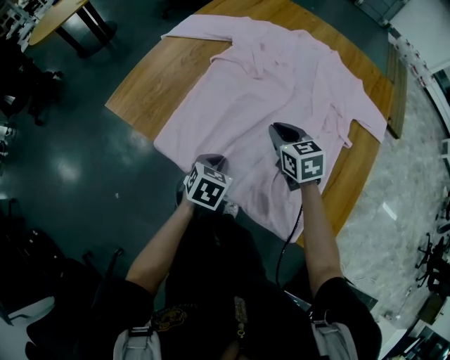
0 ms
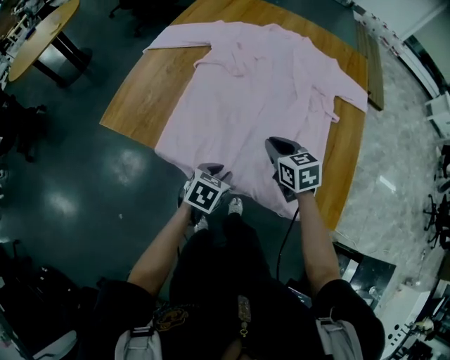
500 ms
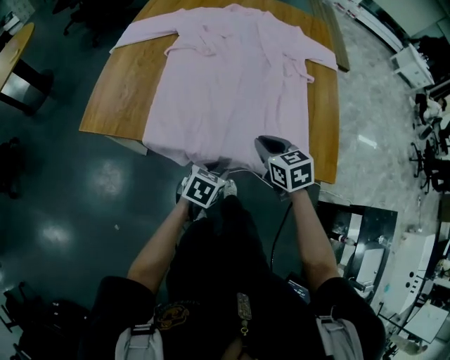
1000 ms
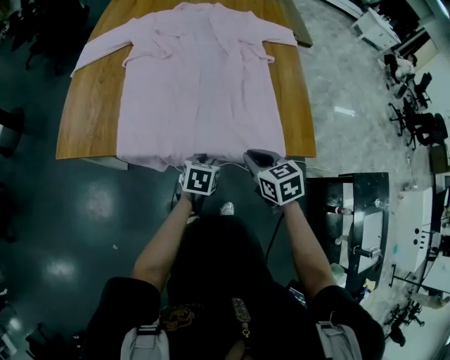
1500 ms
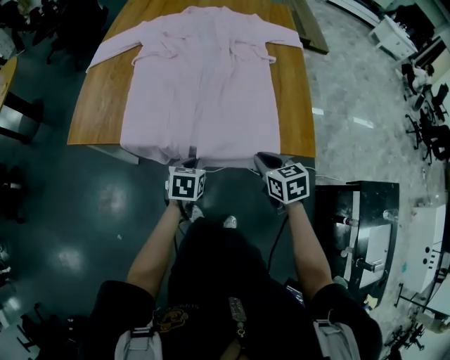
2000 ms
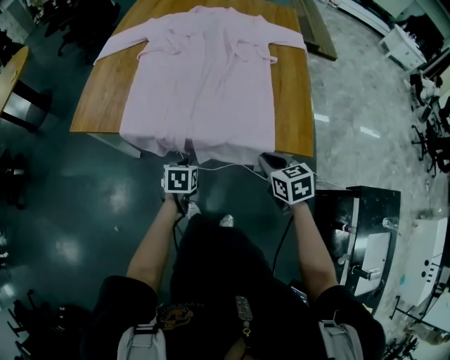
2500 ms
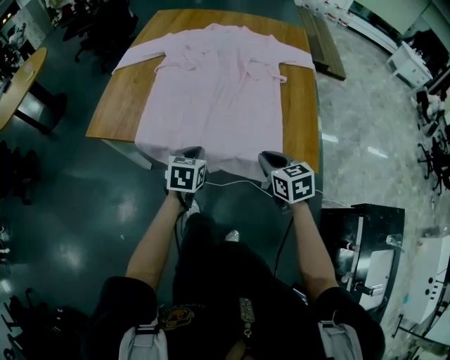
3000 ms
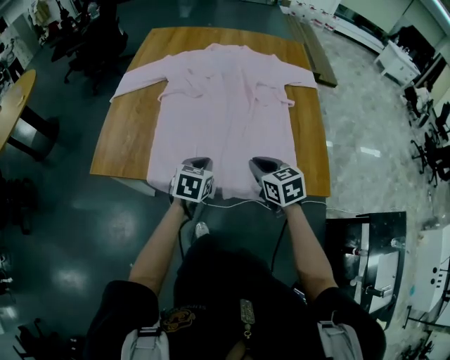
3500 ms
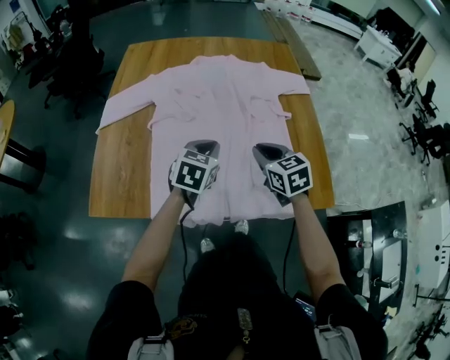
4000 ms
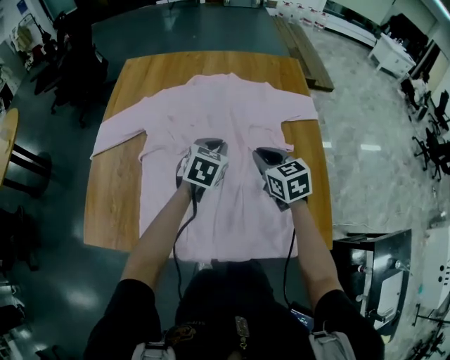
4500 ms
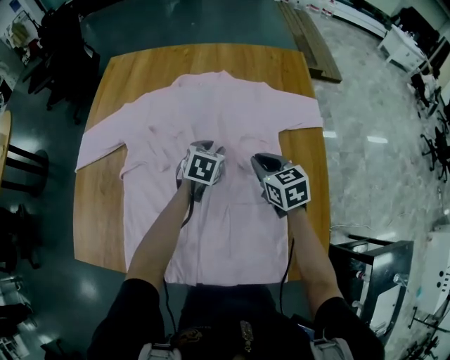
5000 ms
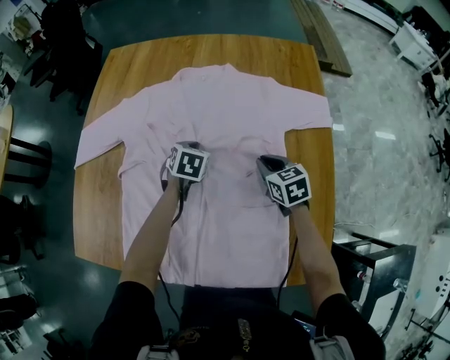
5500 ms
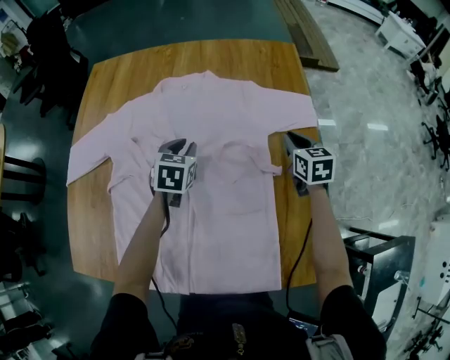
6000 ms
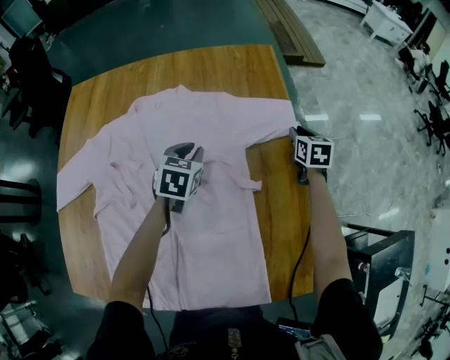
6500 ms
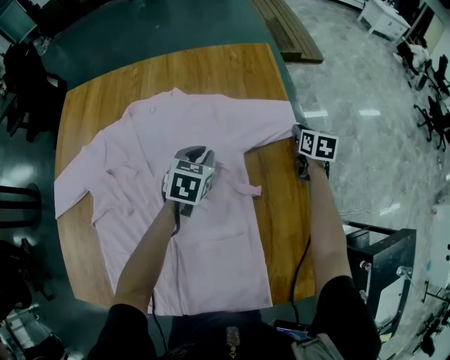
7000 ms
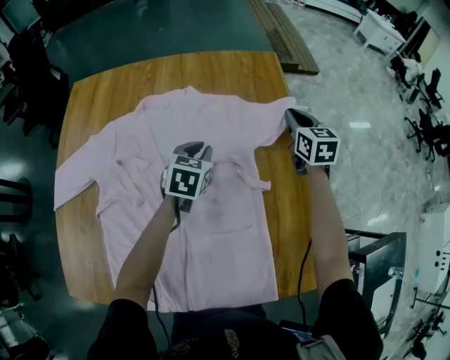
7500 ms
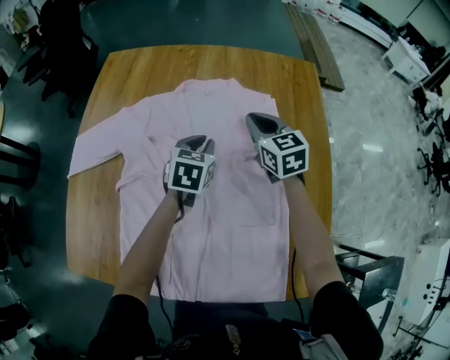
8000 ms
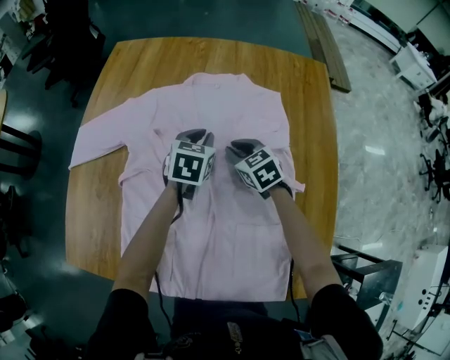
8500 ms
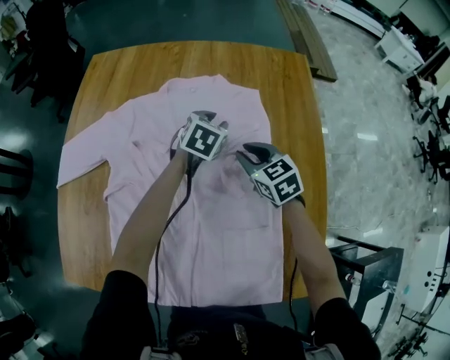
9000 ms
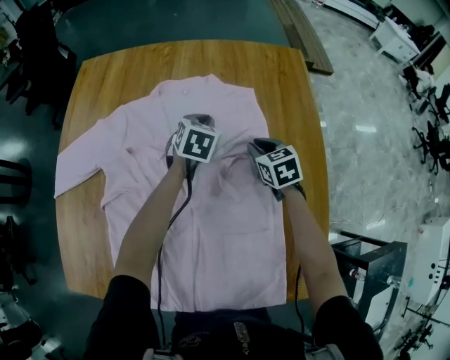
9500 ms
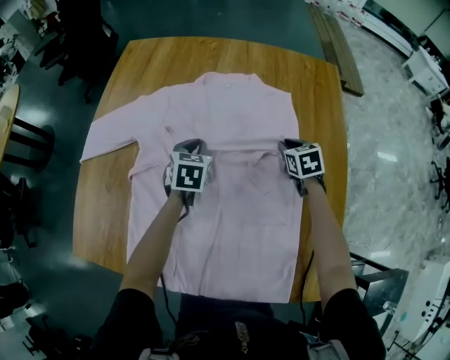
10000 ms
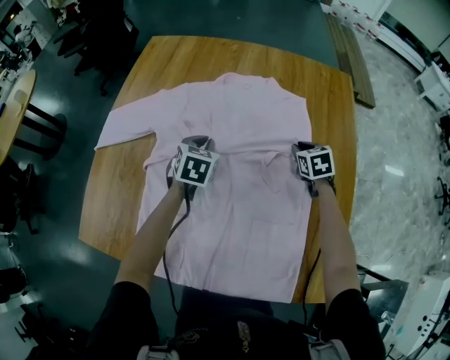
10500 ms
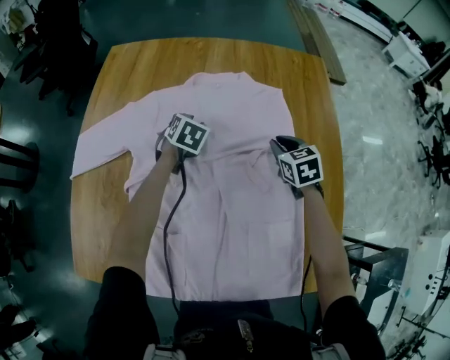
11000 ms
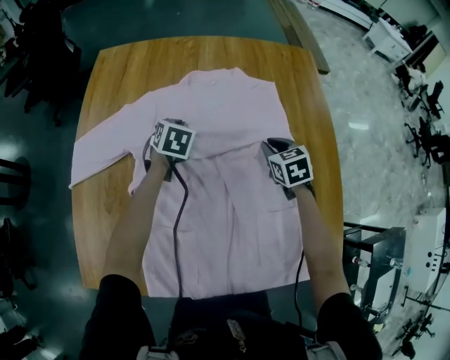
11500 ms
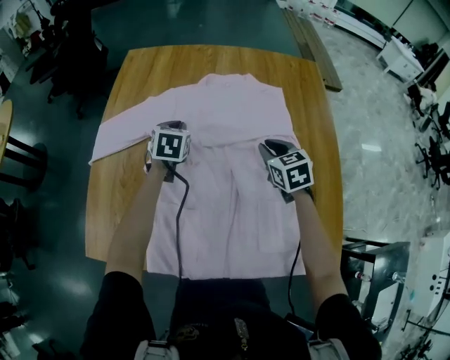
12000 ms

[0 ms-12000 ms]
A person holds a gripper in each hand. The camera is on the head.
0 ms to 2000 ms: The right gripper changes place by about 30 cm, and rotates some 30 degrees; the left gripper moves about 15 cm, and opens and closes again.
2000 ms to 4000 ms: Both grippers travel together forward and upward, approximately 25 cm. The left gripper rotates some 30 degrees.
4000 ms to 6000 ms: The right gripper moves forward and to the right, some 40 cm. The left gripper shifts approximately 30 cm forward.
6000 ms to 8000 ms: The right gripper is displaced to the left by about 20 cm, and turns by roughly 20 degrees. Meanwhile the left gripper goes to the right and returns, approximately 15 cm each way.
8000 ms to 10000 ms: The left gripper goes about 5 cm to the left, while the right gripper heads downward and to the right, covering roughly 15 cm, and changes its angle by approximately 30 degrees.
10000 ms to 12000 ms: The right gripper moves to the left, upward and backward, approximately 20 cm. The left gripper goes approximately 10 cm to the left, moves roughly 10 cm forward and comes back, and opens, then closes once more.

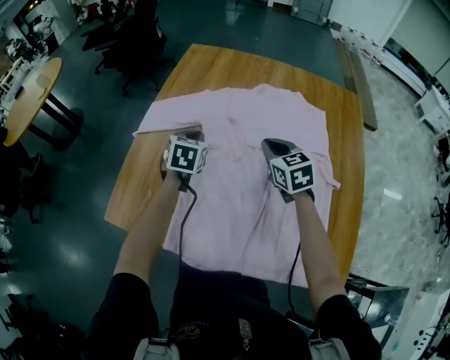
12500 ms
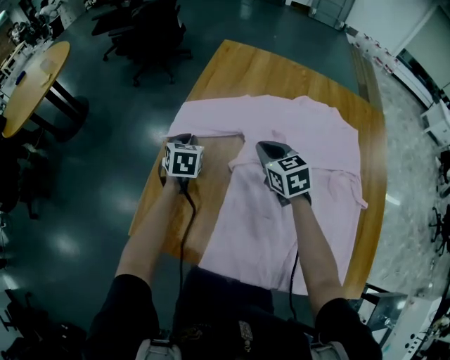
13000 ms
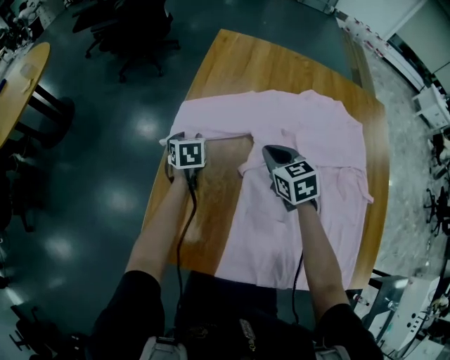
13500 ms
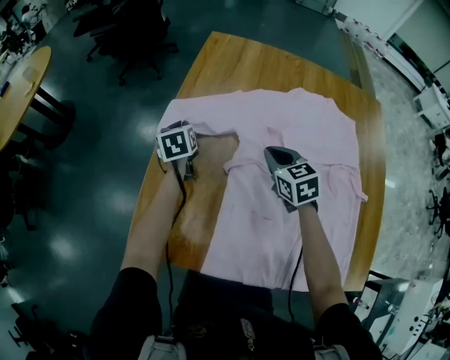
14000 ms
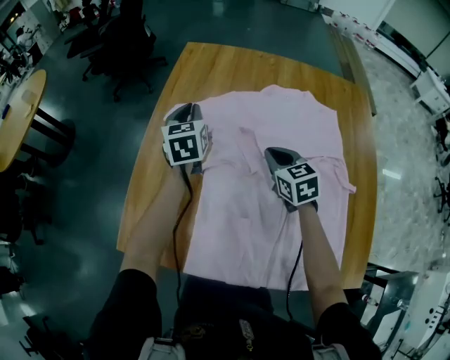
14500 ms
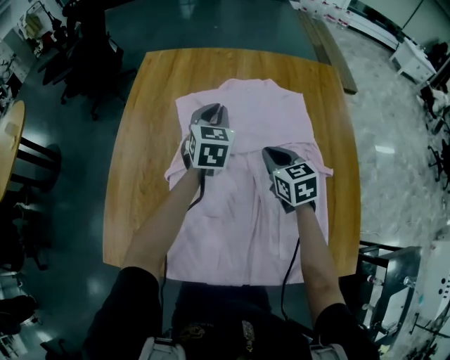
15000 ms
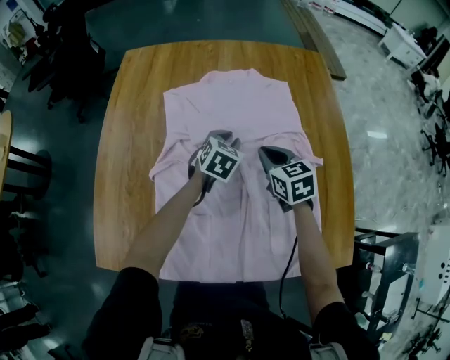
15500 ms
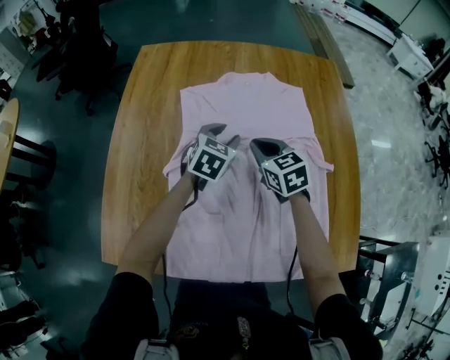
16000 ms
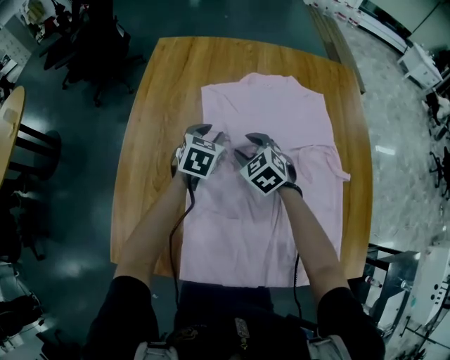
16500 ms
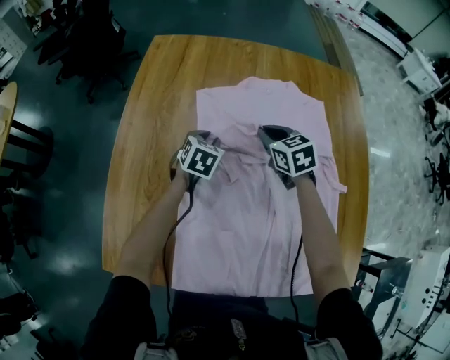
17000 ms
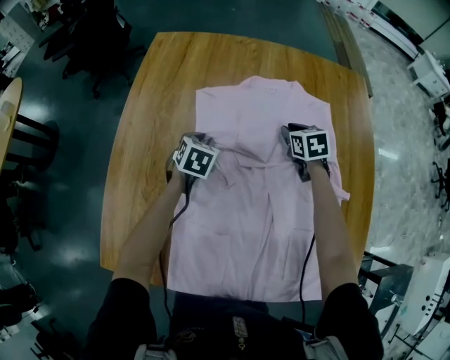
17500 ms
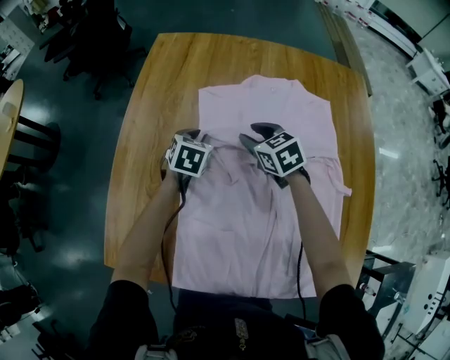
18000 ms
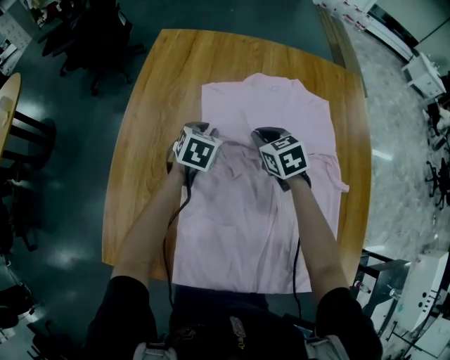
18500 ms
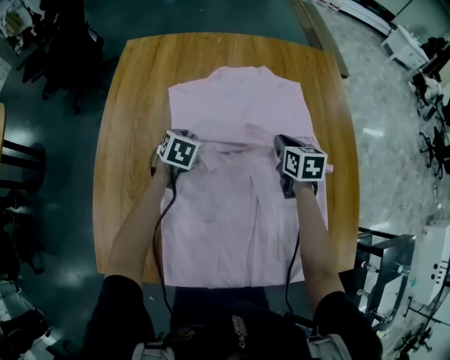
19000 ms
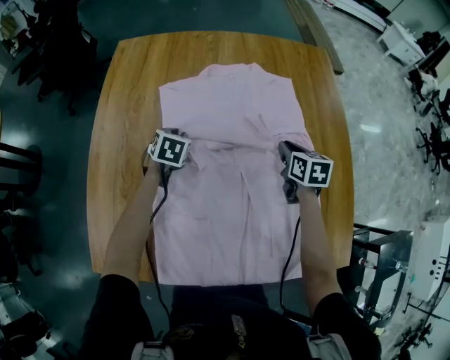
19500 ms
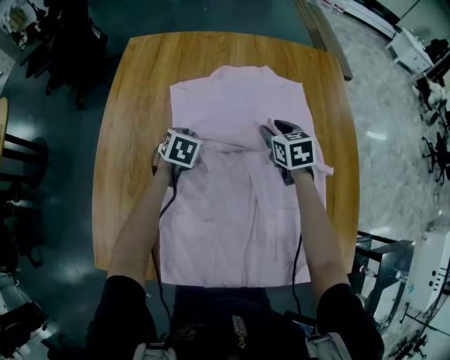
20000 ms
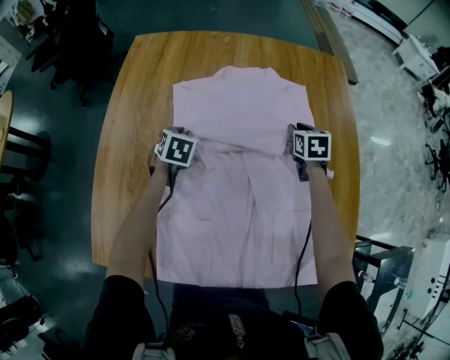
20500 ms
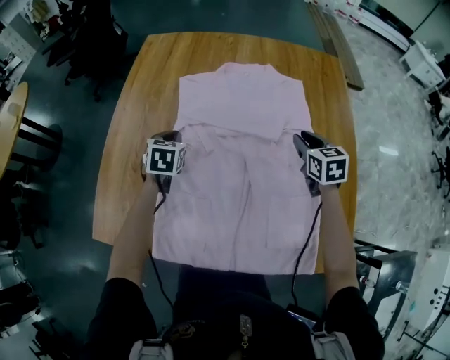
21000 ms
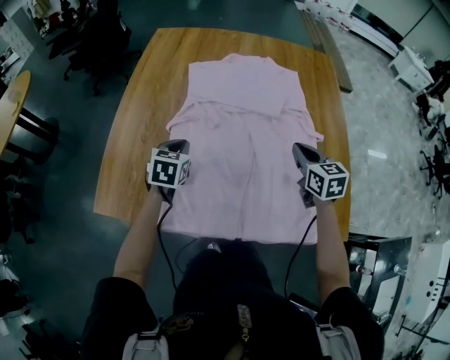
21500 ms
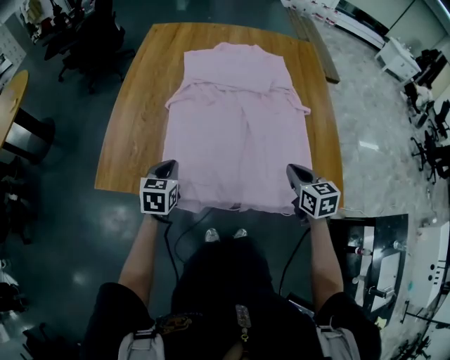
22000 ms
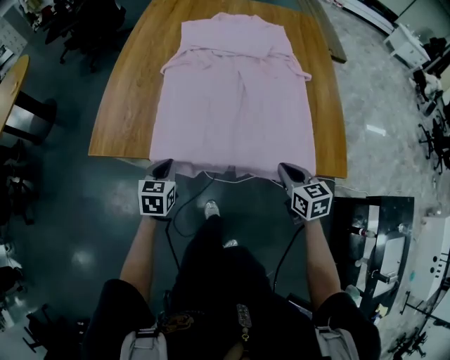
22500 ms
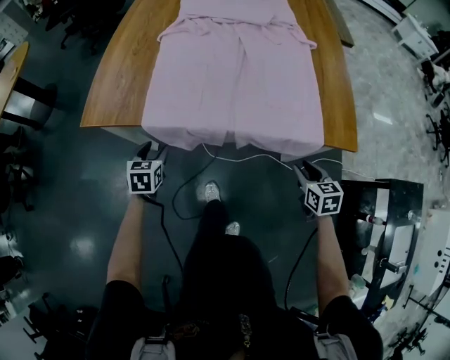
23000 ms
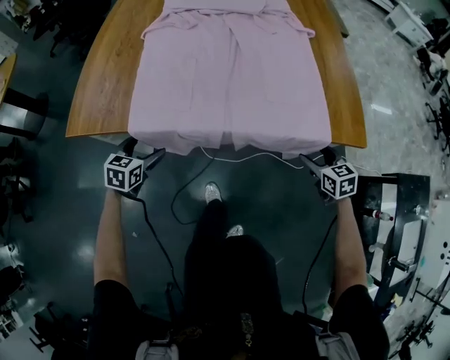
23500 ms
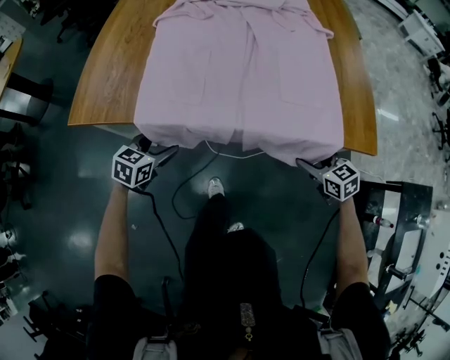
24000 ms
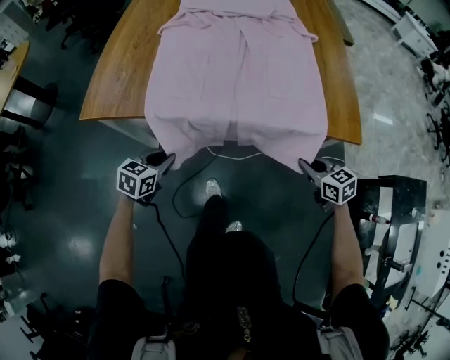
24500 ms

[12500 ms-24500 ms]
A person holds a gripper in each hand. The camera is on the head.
12500 ms to 14500 ms: The right gripper moves approximately 20 cm to the left and comes back; the left gripper is displaced forward and upward by some 15 cm, goes to the left and returns, about 20 cm each way, turns by some 20 degrees, and opens, then closes once more.
14500 ms to 16500 ms: The right gripper is displaced downward by approximately 5 cm, reaches some 15 cm to the right, then returns, turns by some 30 degrees, and opens. Meanwhile the left gripper moves to the right and downward, approximately 15 cm, turns by roughly 40 degrees, and opens.
16500 ms to 18500 ms: The right gripper travels forward by approximately 5 cm, moves roughly 20 cm to the right and comes back, changes its angle by approximately 20 degrees, and closes its fingers.
18500 ms to 20500 ms: The right gripper goes left and right, some 25 cm each way, reversing 2 times, and swivels roughly 30 degrees.
20500 ms to 22500 ms: Both grippers are carried backward, roughly 50 cm. The right gripper turns by about 20 degrees, and closes up.
22500 ms to 24500 ms: The left gripper shifts about 15 cm backward and downward, rotates some 20 degrees, and opens, then closes once more. The right gripper heads downward, backward and to the right, covering approximately 15 cm, and opens, then closes once more.

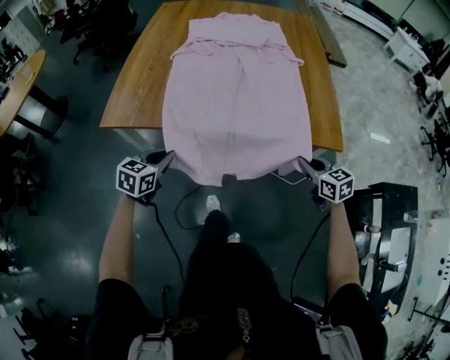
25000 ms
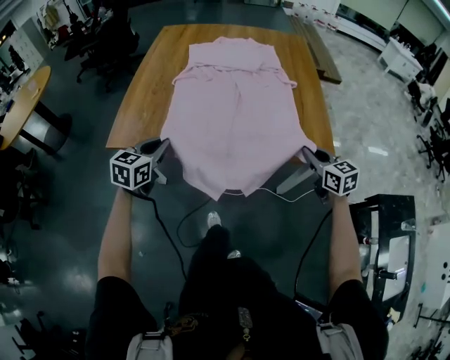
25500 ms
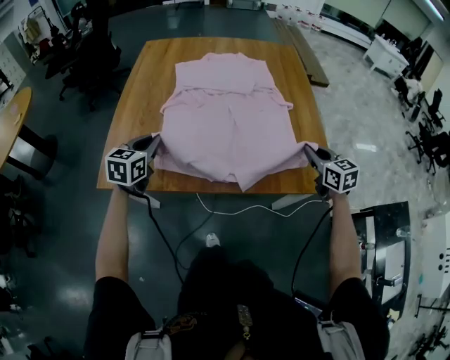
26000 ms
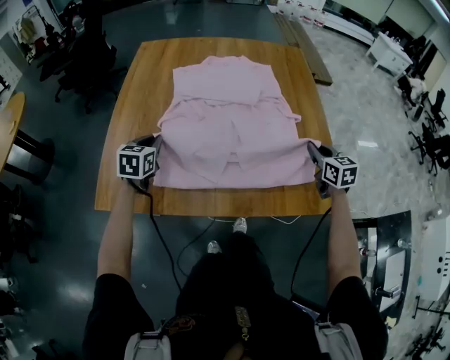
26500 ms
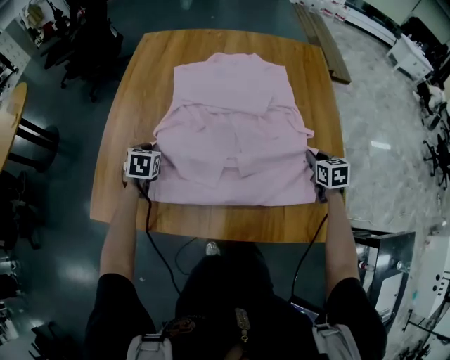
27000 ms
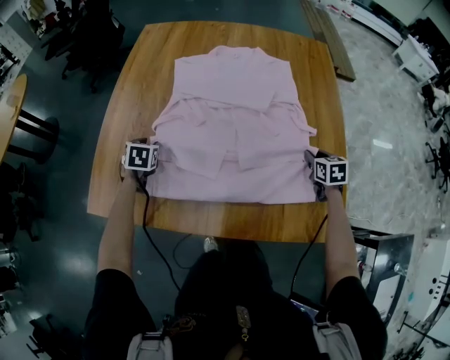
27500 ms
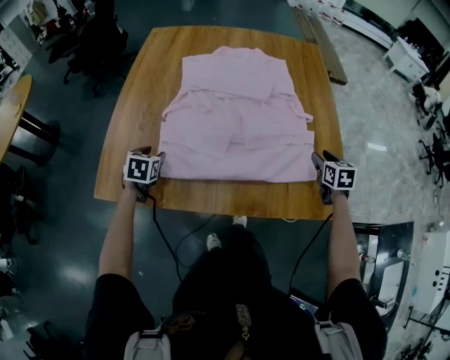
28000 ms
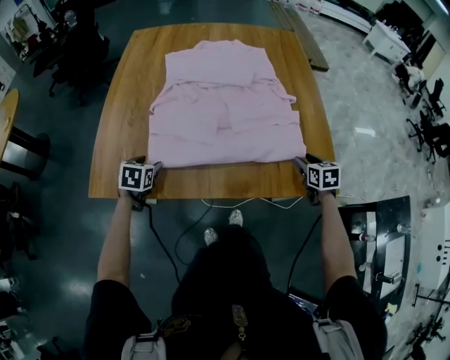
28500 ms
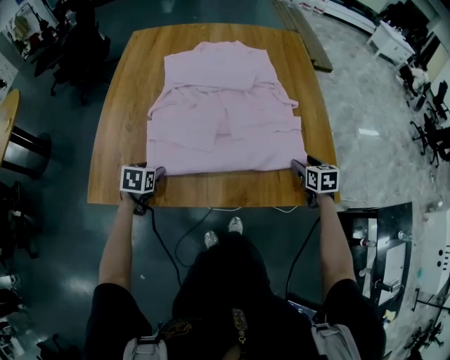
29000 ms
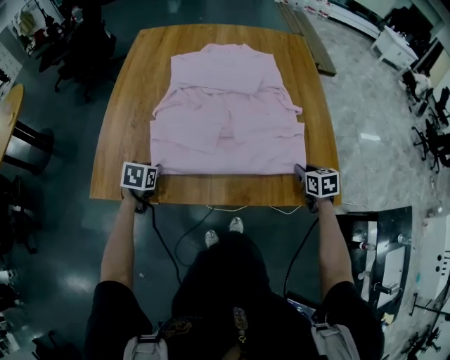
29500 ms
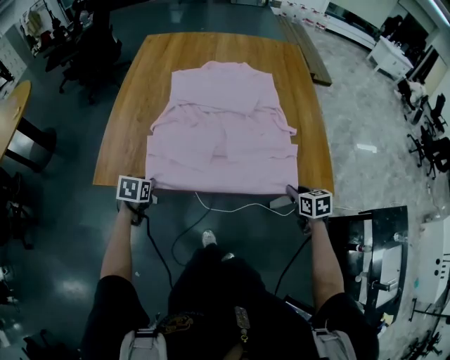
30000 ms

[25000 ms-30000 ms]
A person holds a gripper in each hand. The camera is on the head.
25000 ms to 27500 ms: The two grippers travel together, forward, roughly 40 cm. The left gripper rotates roughly 30 degrees, and opens its fingers, while the right gripper rotates approximately 20 degrees.
27500 ms to 30000 ms: Both grippers move backward, about 30 cm. The left gripper closes; the right gripper opens, then closes once more.
